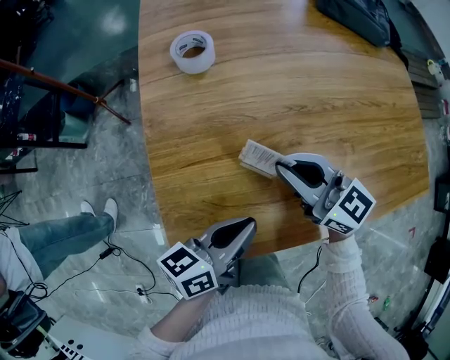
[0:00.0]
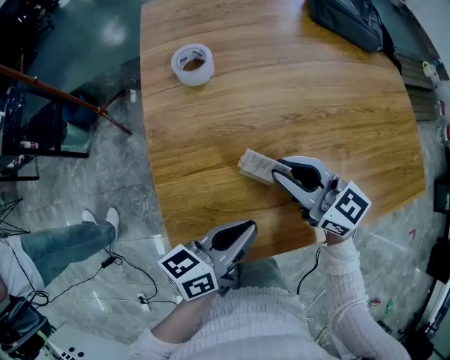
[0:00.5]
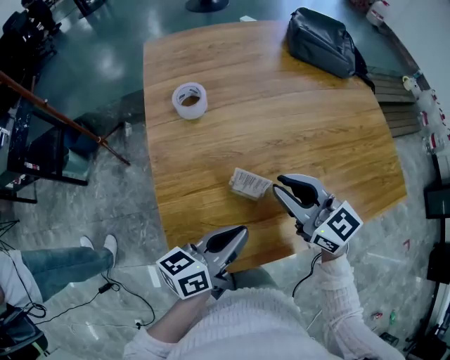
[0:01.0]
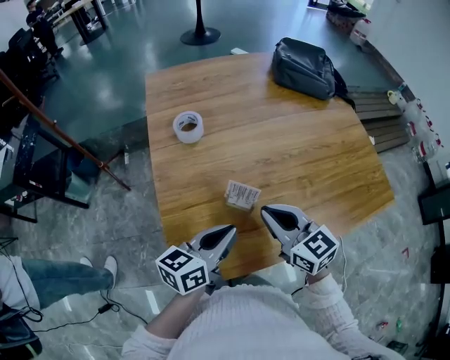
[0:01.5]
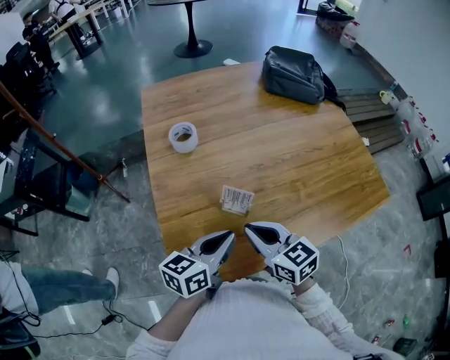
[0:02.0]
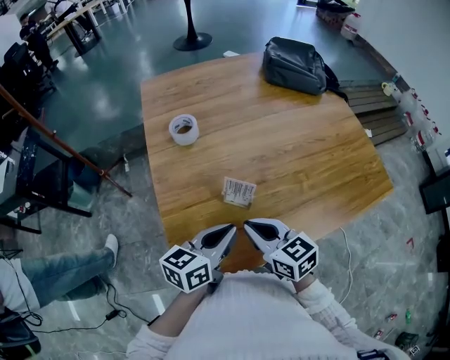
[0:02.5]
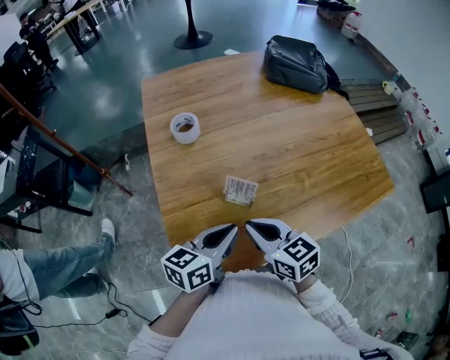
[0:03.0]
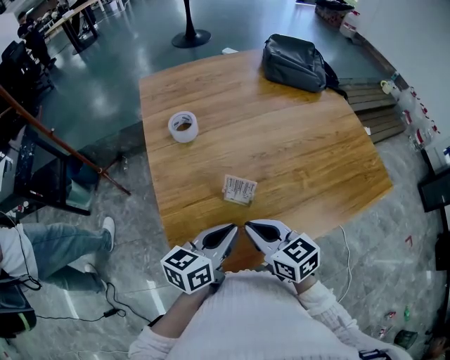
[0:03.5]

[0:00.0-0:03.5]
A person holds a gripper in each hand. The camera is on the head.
0:00.0 to 0:02.0: The left gripper heads upward, covering approximately 5 cm, while the right gripper shifts approximately 10 cm backward, and rotates roughly 20 degrees.
0:02.0 to 0:03.5: The grippers move only a little.

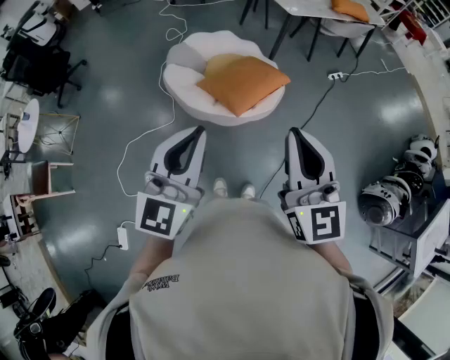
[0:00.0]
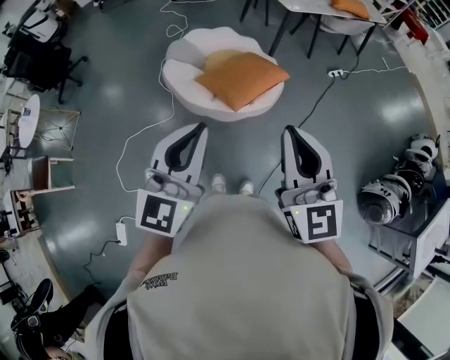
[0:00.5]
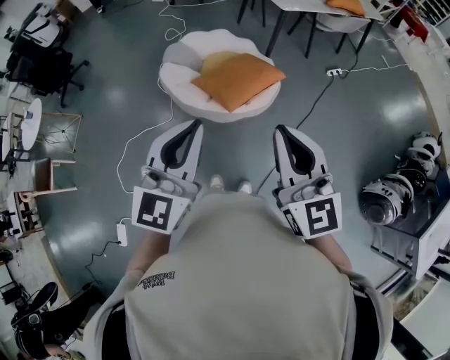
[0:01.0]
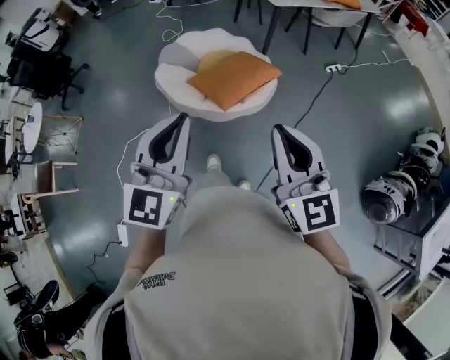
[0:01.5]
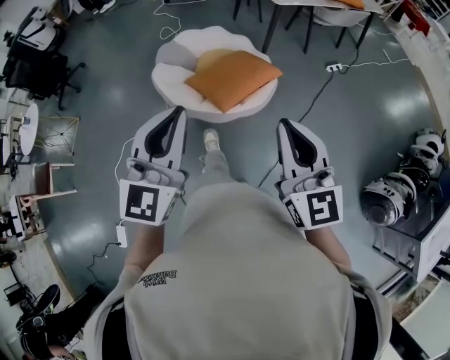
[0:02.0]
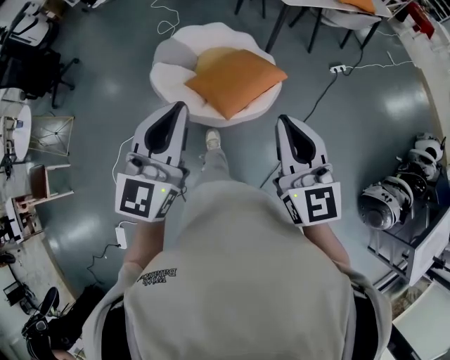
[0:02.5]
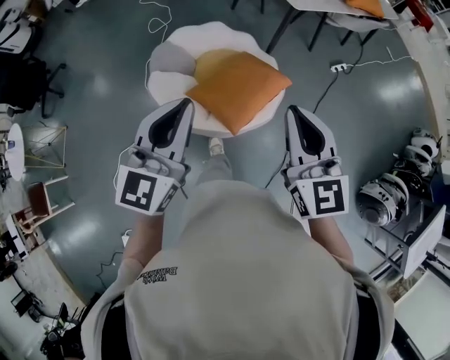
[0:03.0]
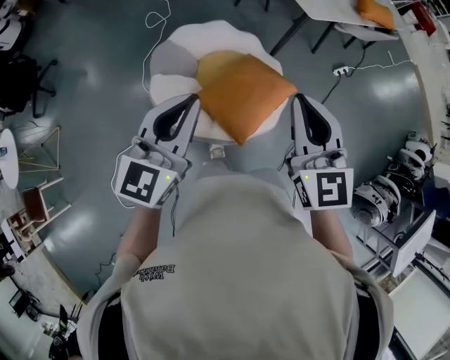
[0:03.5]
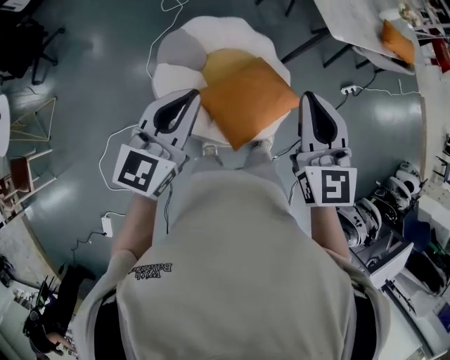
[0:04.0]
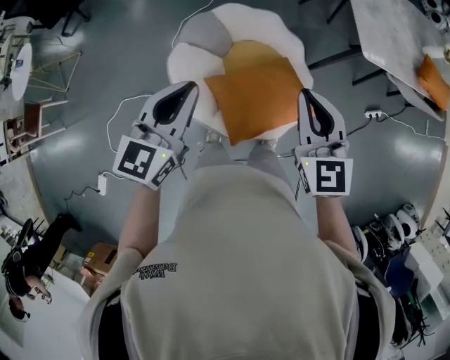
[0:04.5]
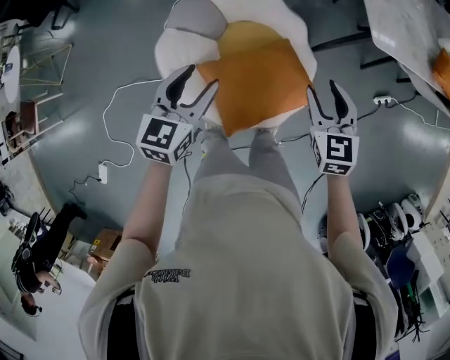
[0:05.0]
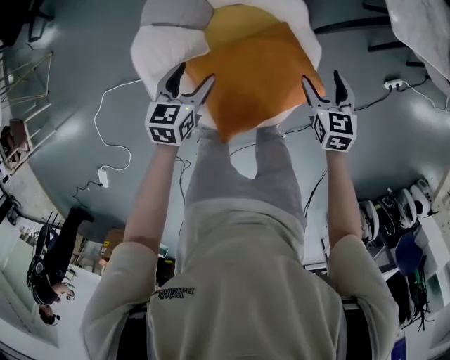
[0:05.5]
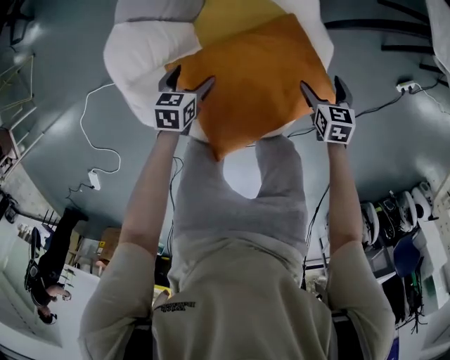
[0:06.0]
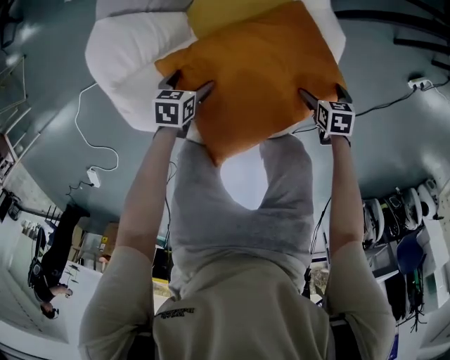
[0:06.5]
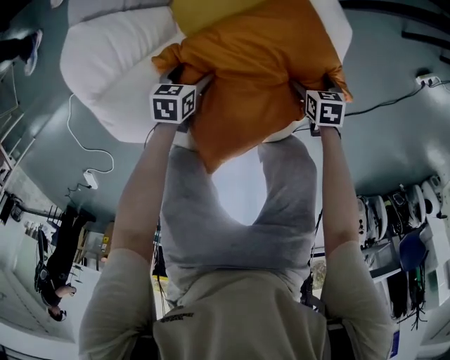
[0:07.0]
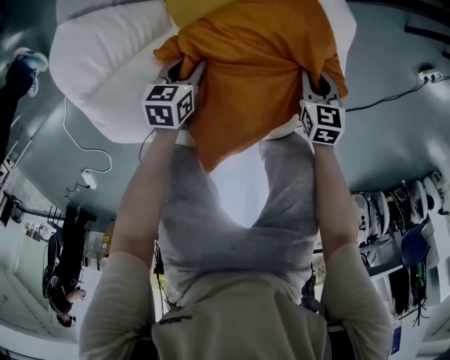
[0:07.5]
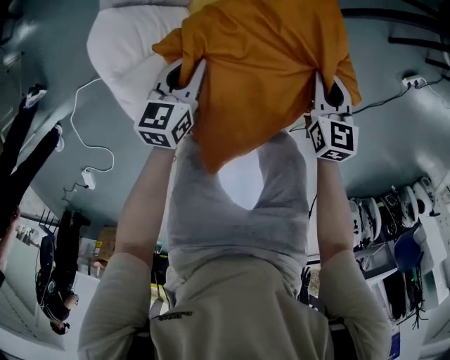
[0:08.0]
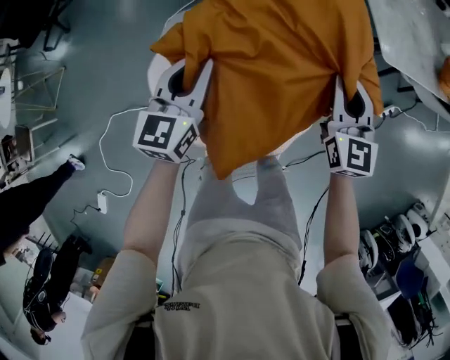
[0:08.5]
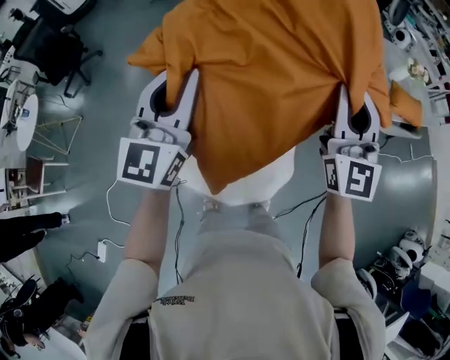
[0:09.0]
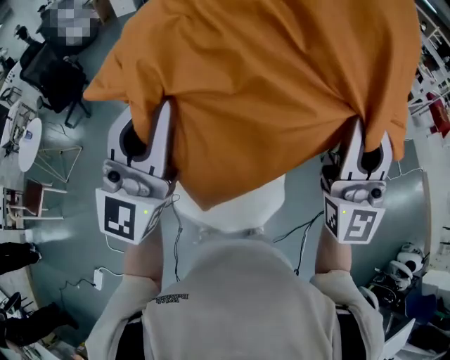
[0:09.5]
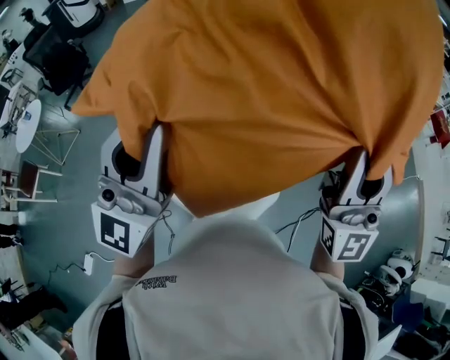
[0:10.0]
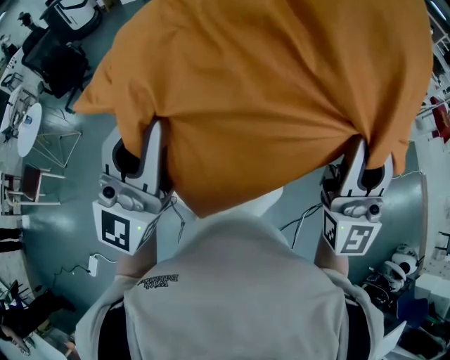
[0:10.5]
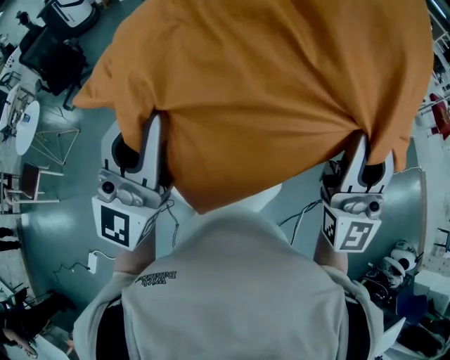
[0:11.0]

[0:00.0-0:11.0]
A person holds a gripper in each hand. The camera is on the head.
0:00.0 to 0:02.0: The two grippers go some 10 cm to the right.
0:02.0 to 0:03.5: The two grippers travel together, forward and to the left, approximately 40 cm. The left gripper turns by roughly 20 degrees.
0:03.5 to 0:05.5: Both grippers travel together downward and forward, roughly 50 cm. The right gripper points its fingers about 30 degrees further downward, and opens up, while the left gripper points its fingers roughly 30 degrees further downward, and opens.
0:05.5 to 0:07.5: Both grippers travel together downward, approximately 35 cm. The right gripper closes its fingers; the left gripper closes up.
0:07.5 to 0:09.0: Both grippers move upward, roughly 90 cm. The left gripper points its fingers roughly 60 degrees further upward; the right gripper angles its fingers upward, by roughly 70 degrees.
0:09.0 to 0:11.0: The two grippers go some 20 cm backward and upward. The left gripper swivels approximately 20 degrees.

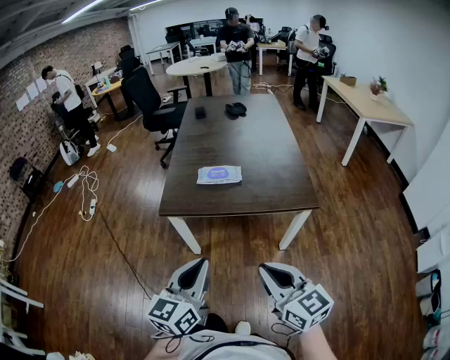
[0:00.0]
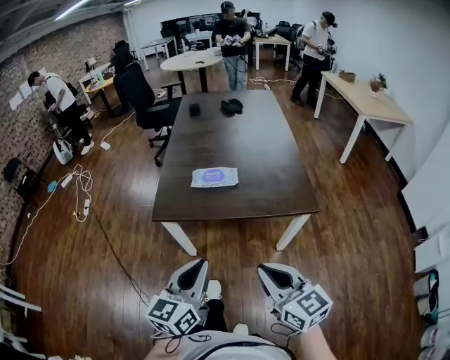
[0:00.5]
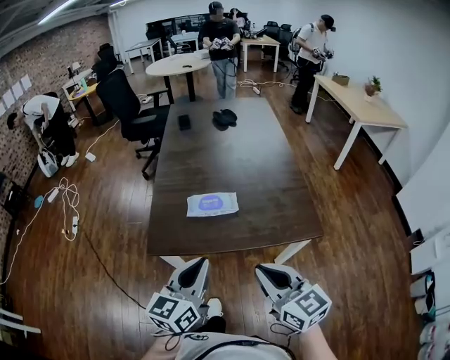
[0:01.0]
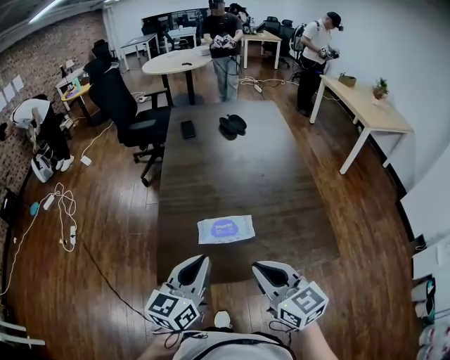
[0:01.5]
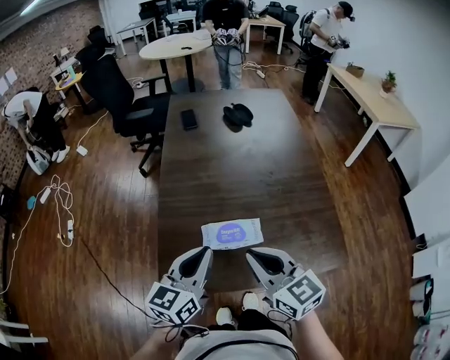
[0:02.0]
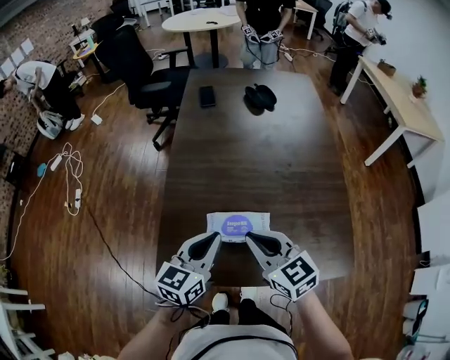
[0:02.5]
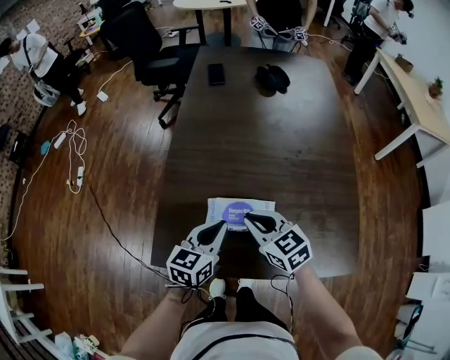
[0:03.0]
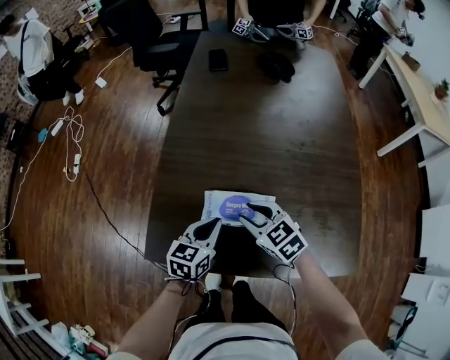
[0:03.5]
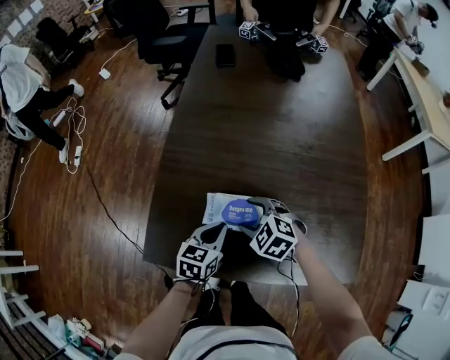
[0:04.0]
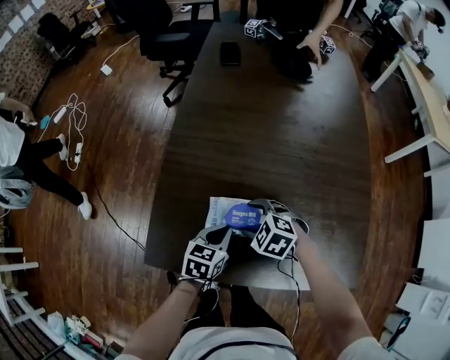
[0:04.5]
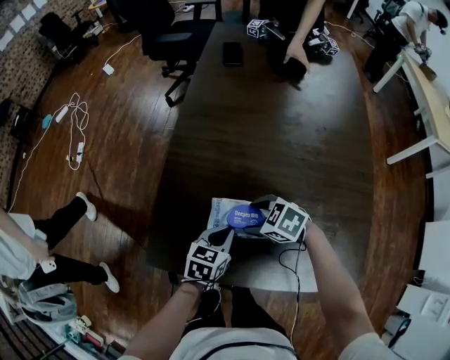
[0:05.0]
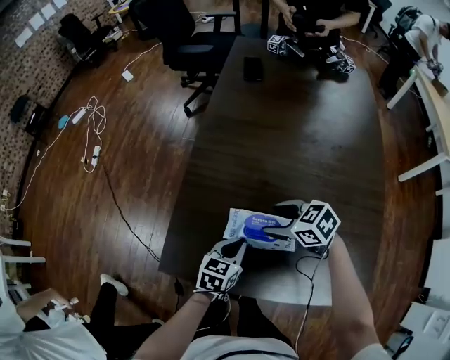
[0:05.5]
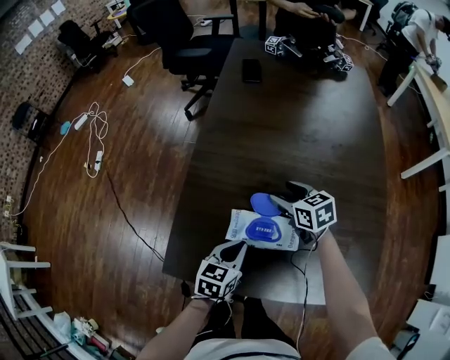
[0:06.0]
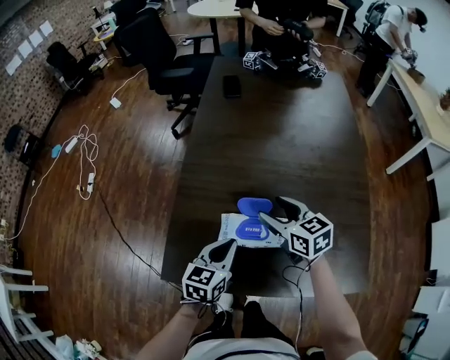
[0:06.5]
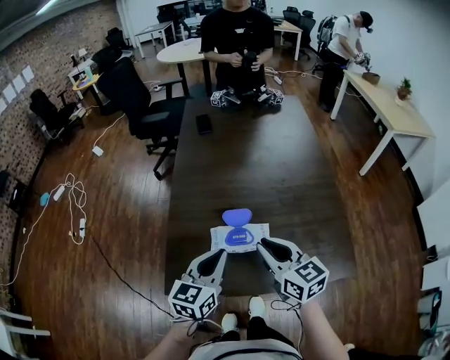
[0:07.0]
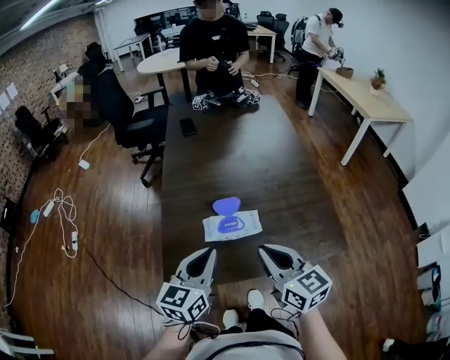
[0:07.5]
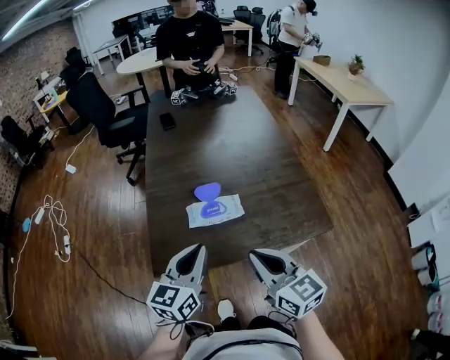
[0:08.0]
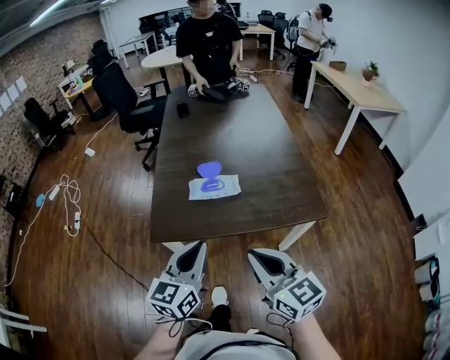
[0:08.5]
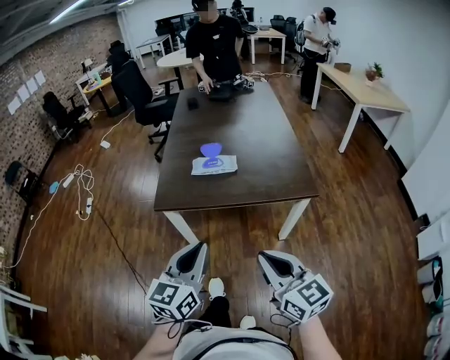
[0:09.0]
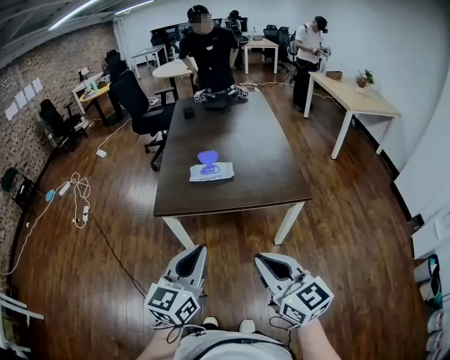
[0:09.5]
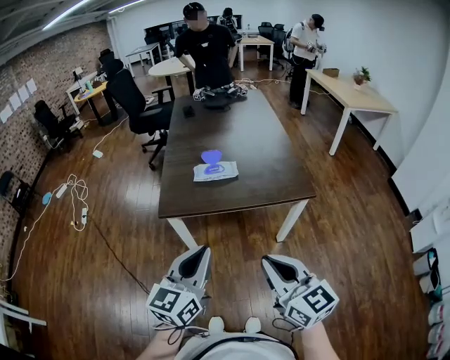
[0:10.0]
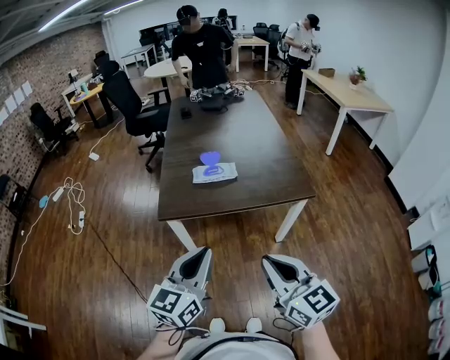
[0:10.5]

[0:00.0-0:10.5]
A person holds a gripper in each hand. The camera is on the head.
0:00.0 to 0:02.0: The two grippers travel together, forward, approximately 50 cm.
0:02.0 to 0:04.0: The left gripper shifts roughly 25 cm downward, and rotates about 30 degrees. Meanwhile the right gripper goes about 30 cm downward and forward, tilts its fingers roughly 40 degrees downward, and opens.
0:04.0 to 0:06.5: Both grippers travel together upward, some 10 cm. The right gripper turns by approximately 50 degrees.
0:06.5 to 0:08.5: The left gripper moves backward and upward, approximately 35 cm, and rotates about 20 degrees. The right gripper travels backward by about 50 cm, changes its angle by about 30 degrees, and closes up.
0:08.5 to 0:10.5: Both grippers move backward, some 20 cm.

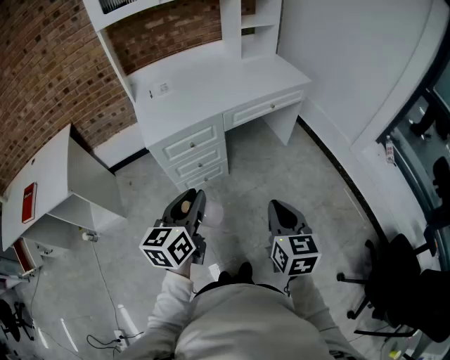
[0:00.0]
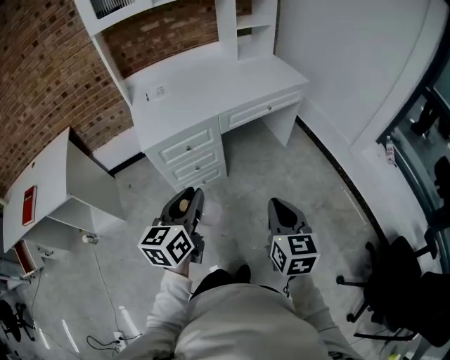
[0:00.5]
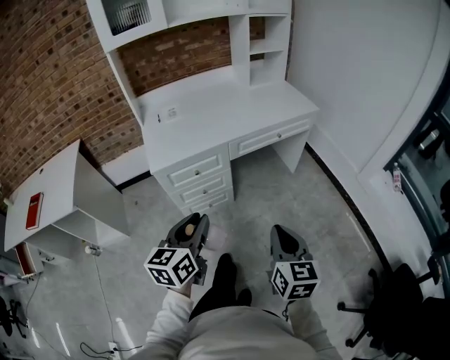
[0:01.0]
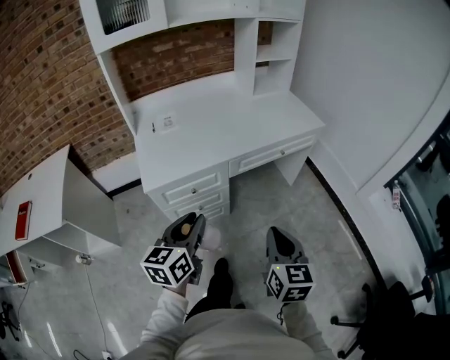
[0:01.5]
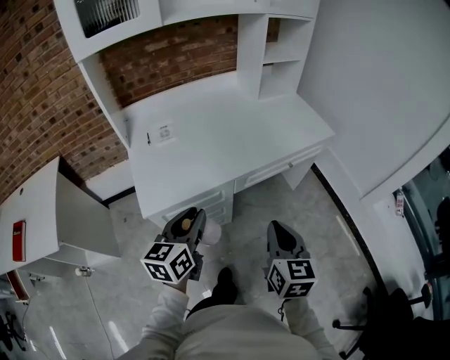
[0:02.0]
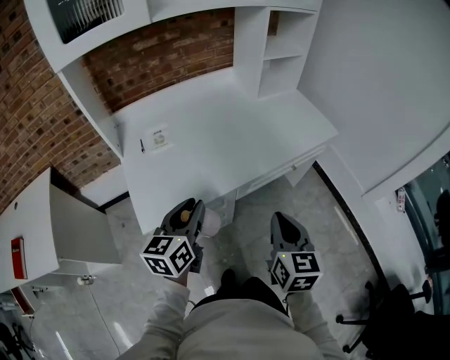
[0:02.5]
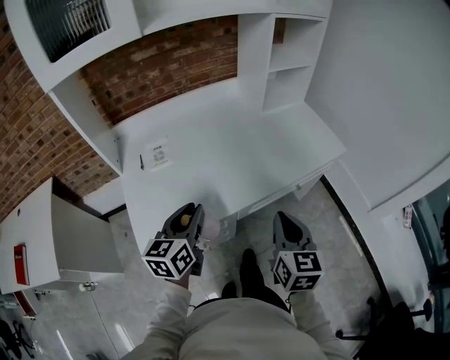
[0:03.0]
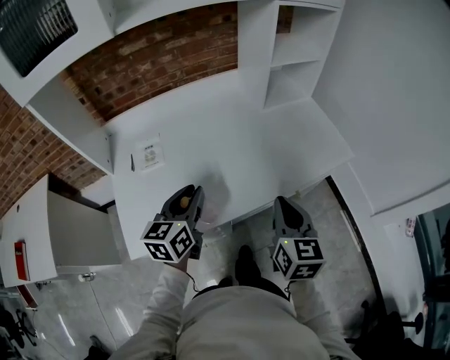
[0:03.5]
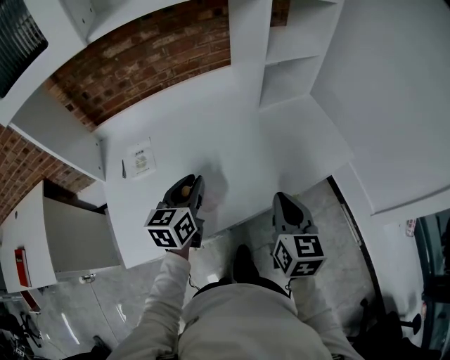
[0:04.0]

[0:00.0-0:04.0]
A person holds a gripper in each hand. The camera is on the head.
0:00.0 to 0:02.0: Both grippers move forward, roughly 30 cm.
0:02.0 to 0:04.0: The two grippers go about 35 cm forward.
